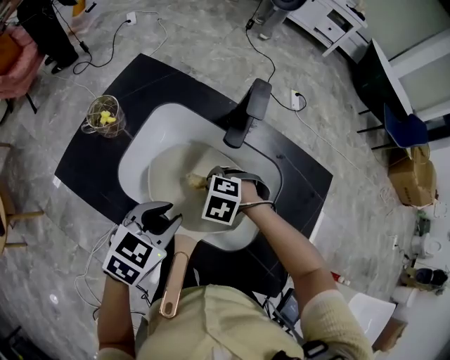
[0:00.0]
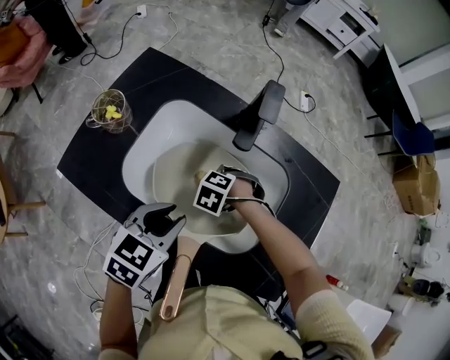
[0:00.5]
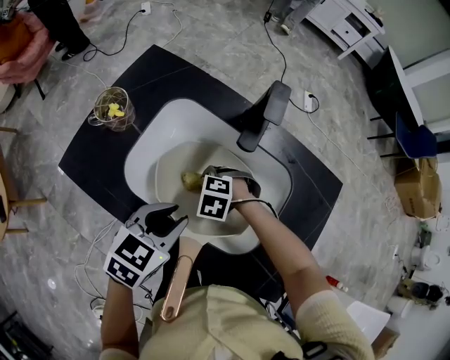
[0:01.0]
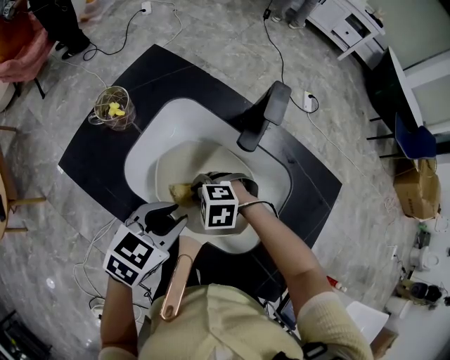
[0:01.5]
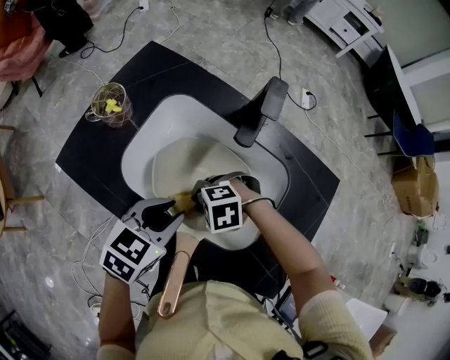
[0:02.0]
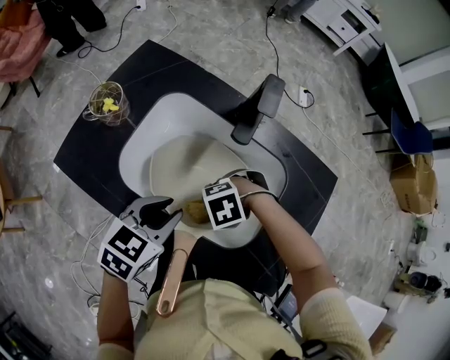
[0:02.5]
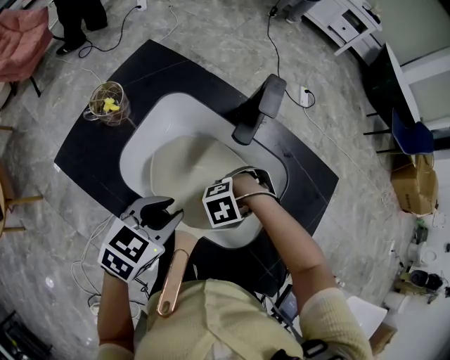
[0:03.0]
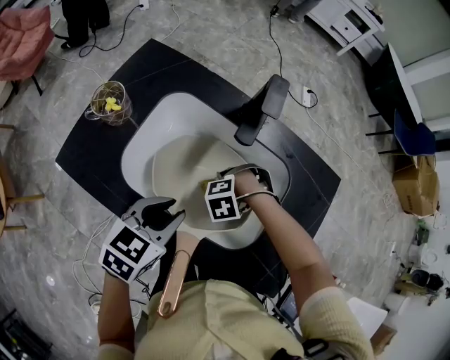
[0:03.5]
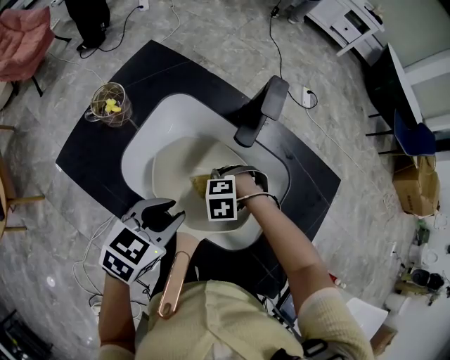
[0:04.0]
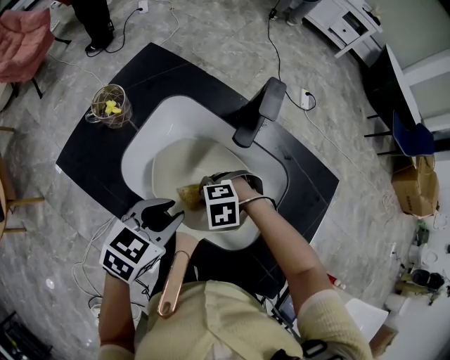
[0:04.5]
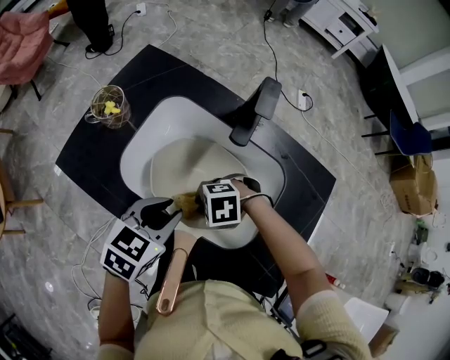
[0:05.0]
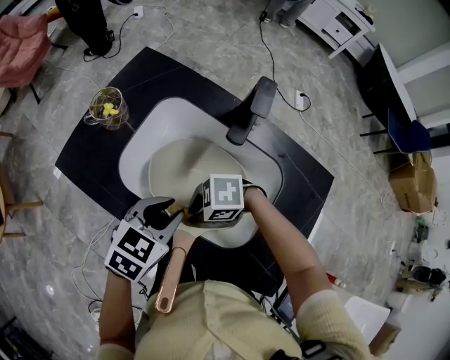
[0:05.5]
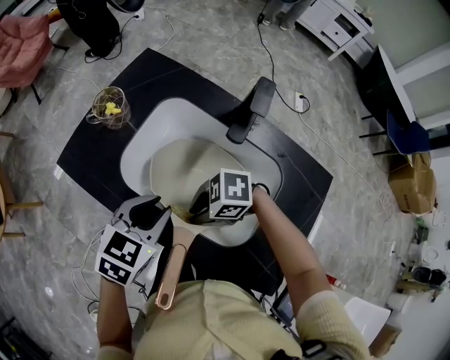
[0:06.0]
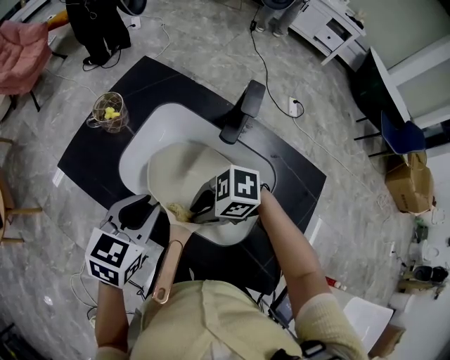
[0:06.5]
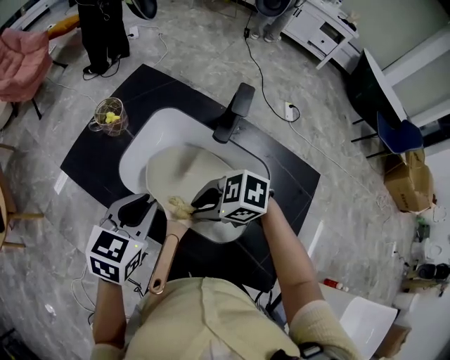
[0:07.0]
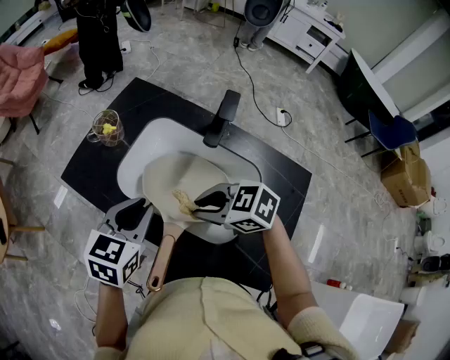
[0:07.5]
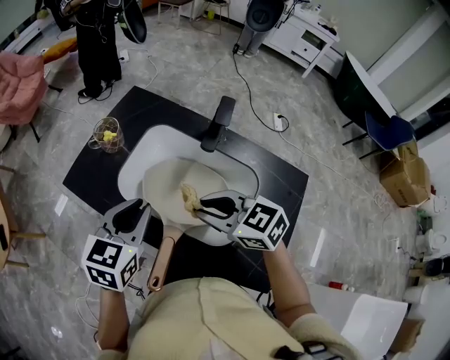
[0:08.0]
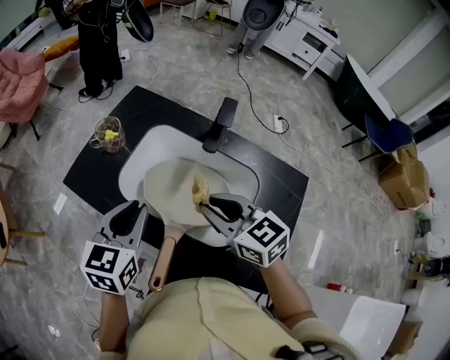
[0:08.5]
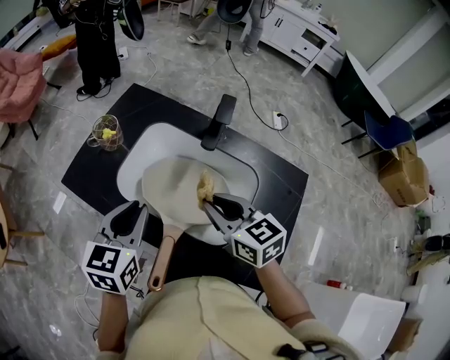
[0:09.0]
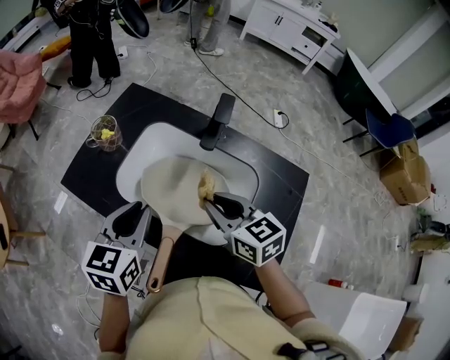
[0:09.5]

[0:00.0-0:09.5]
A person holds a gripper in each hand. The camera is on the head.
0:00.0 to 0:02.0: The right gripper shifts by roughly 10 cm, and rotates some 30 degrees.
0:02.0 to 0:04.0: The right gripper moves roughly 10 cm.
0:04.0 to 0:05.5: The right gripper shifts by approximately 15 cm, and tips its fingers upward by some 40 degrees.
0:05.5 to 0:07.5: The left gripper goes some 10 cm upward, while the right gripper moves upward, some 10 cm, and changes its angle by about 40 degrees.
0:07.5 to 0:09.5: The right gripper goes about 5 cm to the right, and swivels roughly 50 degrees.

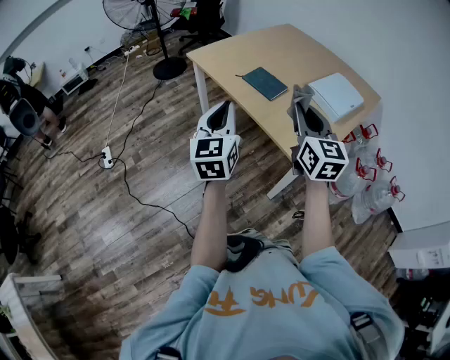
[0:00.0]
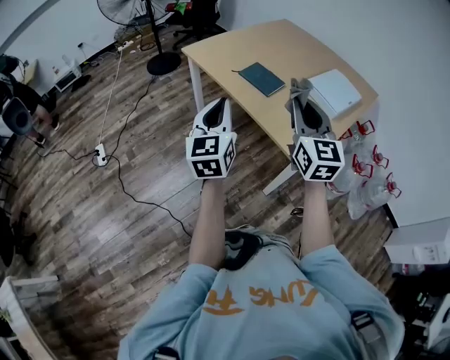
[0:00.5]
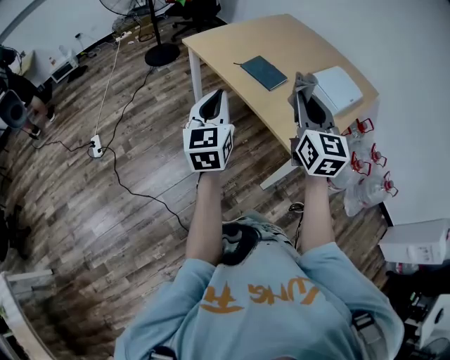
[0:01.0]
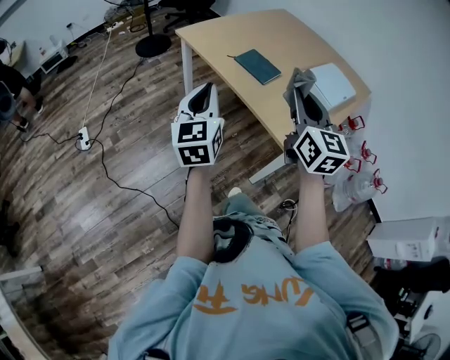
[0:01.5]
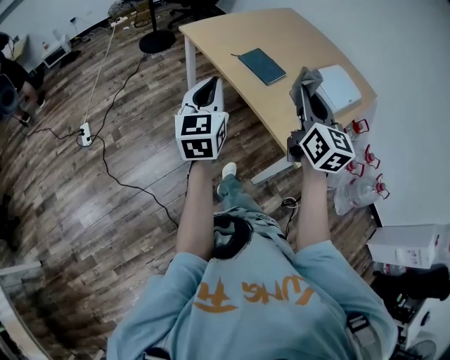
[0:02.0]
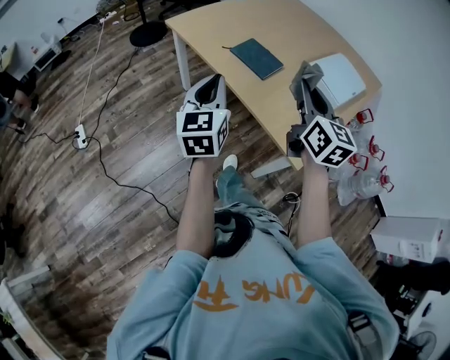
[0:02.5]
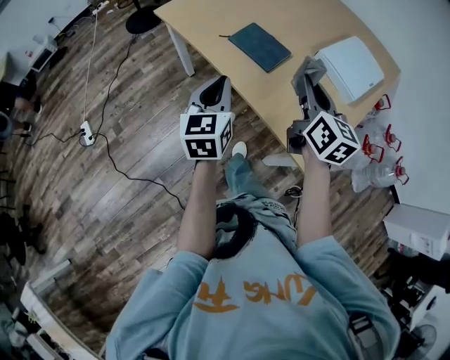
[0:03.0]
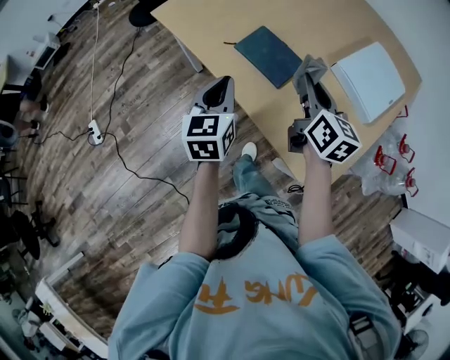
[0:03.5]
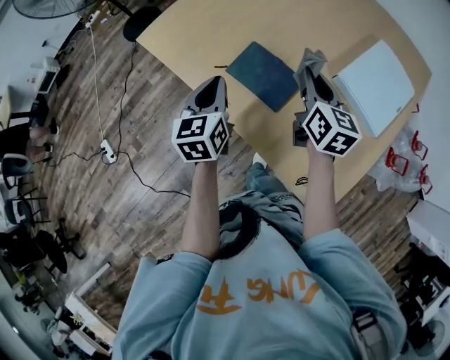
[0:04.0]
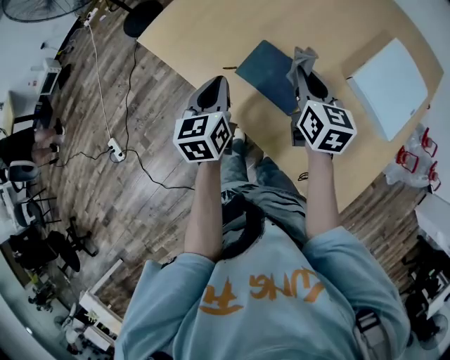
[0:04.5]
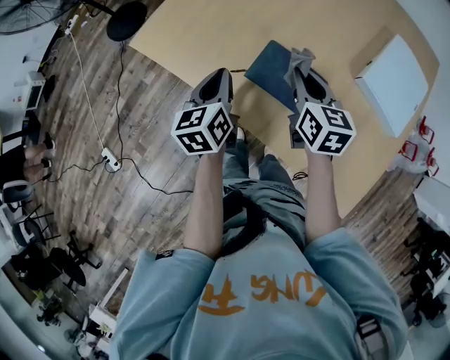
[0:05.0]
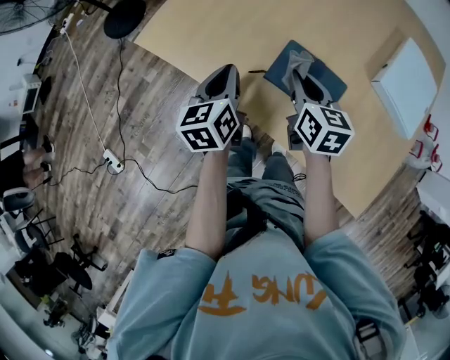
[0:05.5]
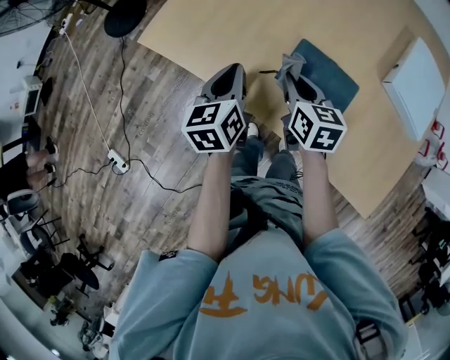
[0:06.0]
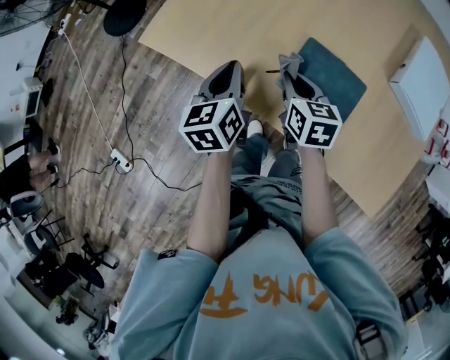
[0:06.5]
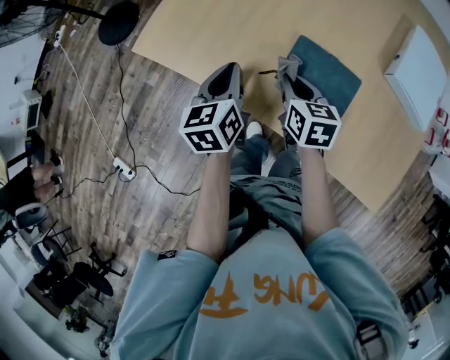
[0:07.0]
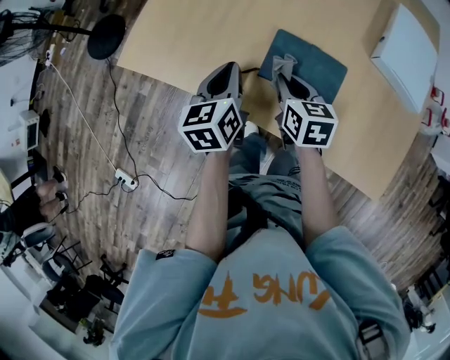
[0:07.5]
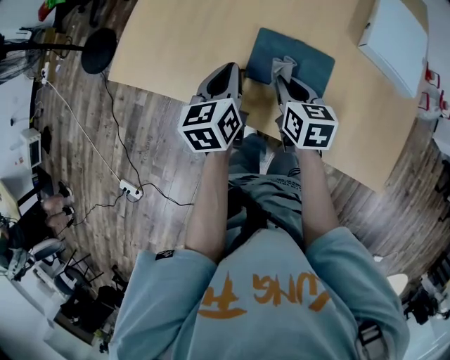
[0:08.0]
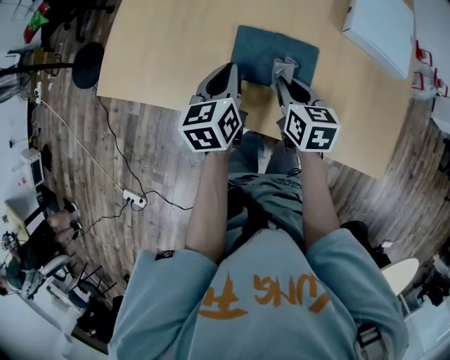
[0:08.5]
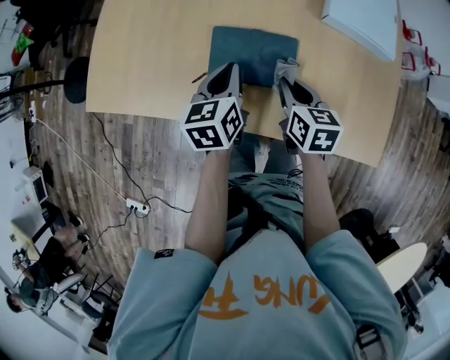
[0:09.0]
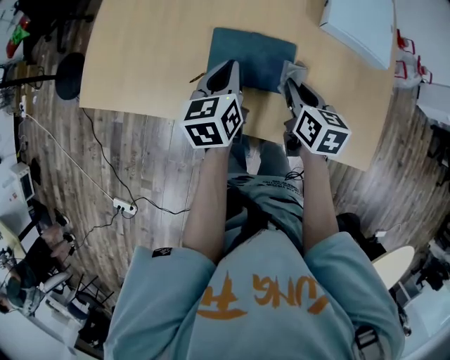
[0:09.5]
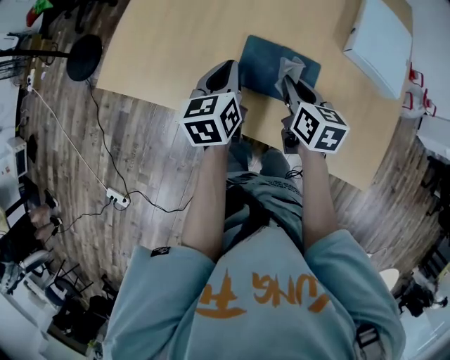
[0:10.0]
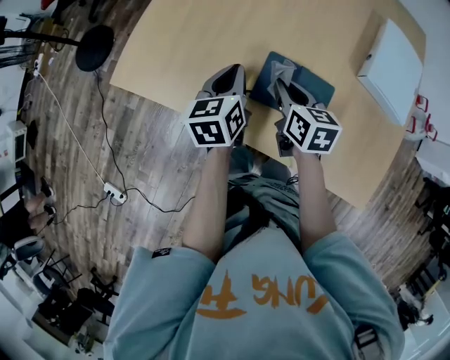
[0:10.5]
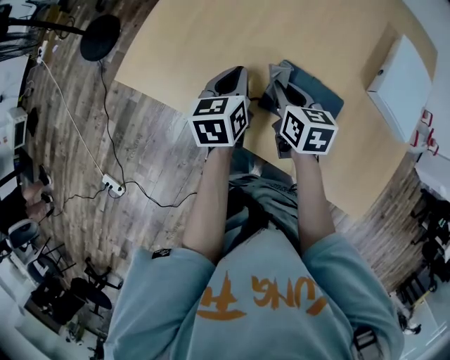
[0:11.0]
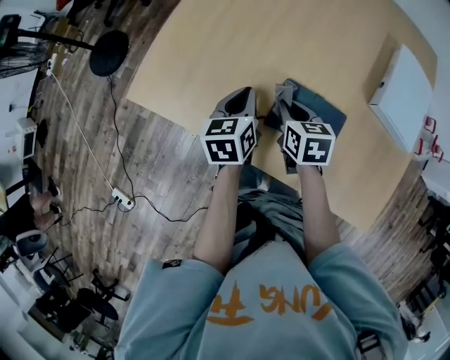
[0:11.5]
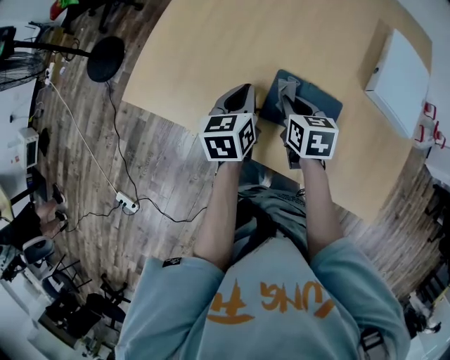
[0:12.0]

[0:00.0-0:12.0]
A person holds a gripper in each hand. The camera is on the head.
0:00.0 to 0:02.0: The left gripper shifts by roughly 5 cm.
0:02.0 to 0:04.0: The pair of grippers is taken forward, approximately 40 cm. The left gripper rotates some 20 degrees; the right gripper goes about 20 cm downward, and changes its angle by about 20 degrees.
0:04.0 to 0:06.0: The right gripper heads to the left and downward, covering approximately 25 cm; the left gripper shifts roughly 20 cm to the left, forward and downward.
0:06.0 to 0:08.0: The two grippers go roughly 10 cm to the right.
0:08.0 to 0:10.0: The left gripper travels to the right and back again, about 10 cm each way.
0:10.0 to 0:12.0: The right gripper shifts some 10 cm to the left and forward.

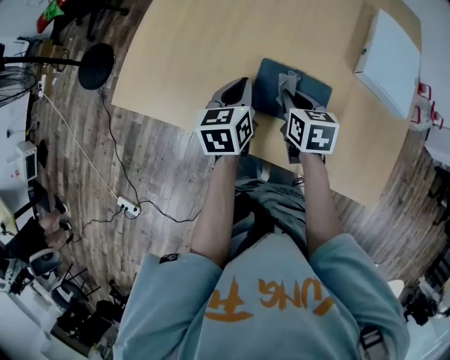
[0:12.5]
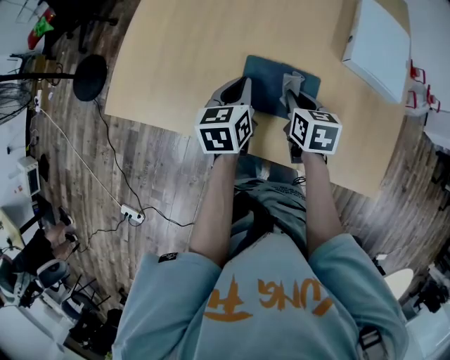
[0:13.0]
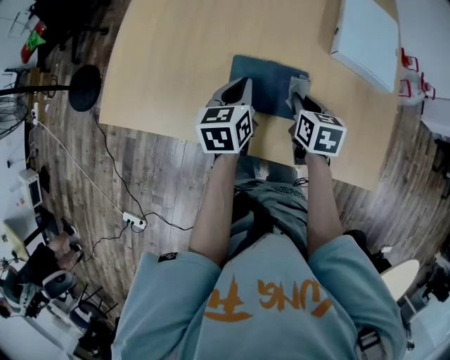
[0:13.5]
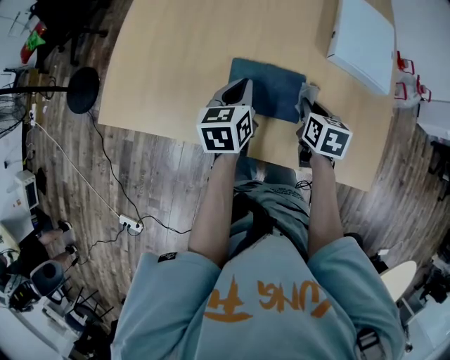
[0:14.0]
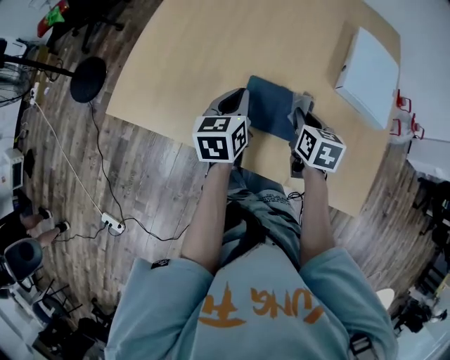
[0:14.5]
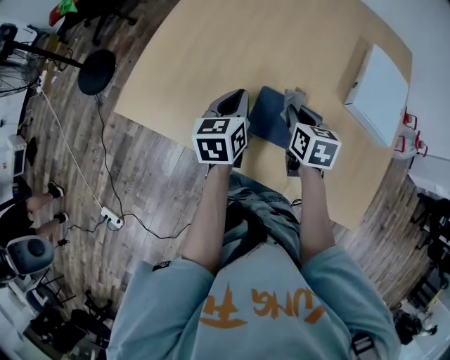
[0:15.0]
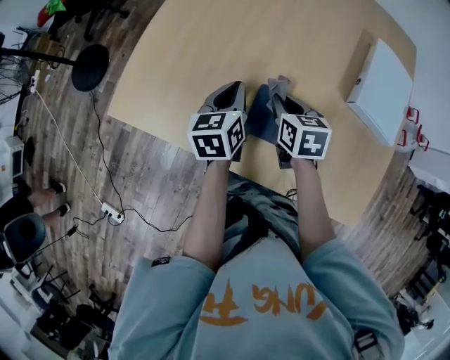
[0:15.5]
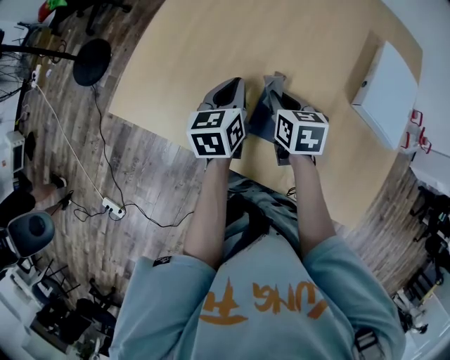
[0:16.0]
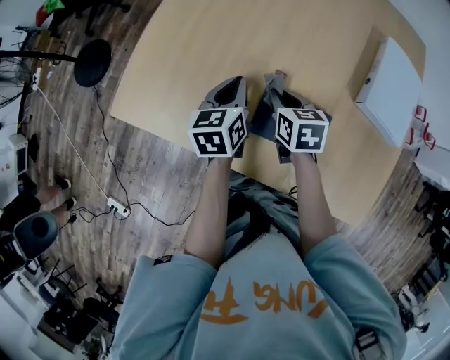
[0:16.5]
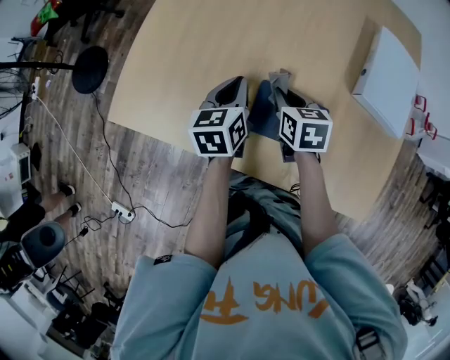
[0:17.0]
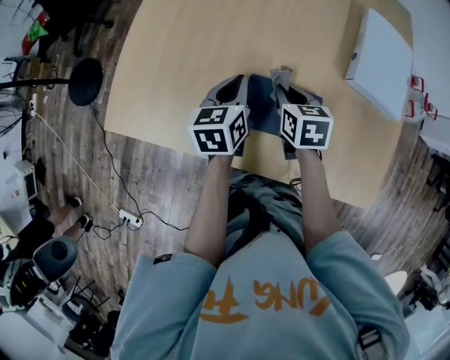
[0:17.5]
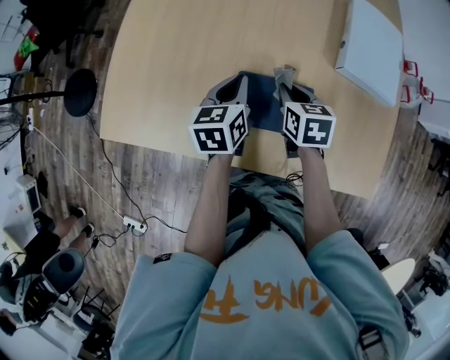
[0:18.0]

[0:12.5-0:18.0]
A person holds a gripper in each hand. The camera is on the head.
0:12.5 to 0:14.5: The left gripper moves about 10 cm to the right and comes back. The right gripper travels to the right by some 10 cm.
0:14.5 to 0:16.0: The left gripper heads forward and to the left, covering some 10 cm. The right gripper heads to the left and forward, covering roughly 15 cm.
0:16.0 to 0:18.0: The grippers both shift to the right by some 10 cm.
